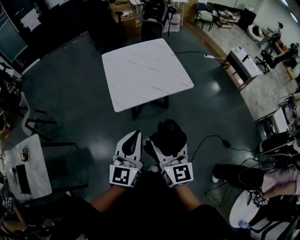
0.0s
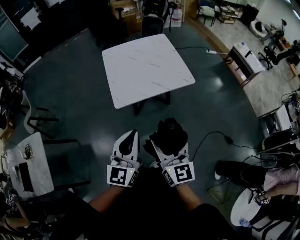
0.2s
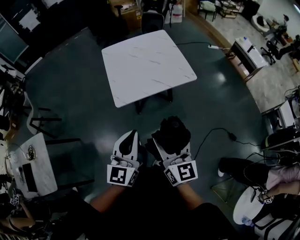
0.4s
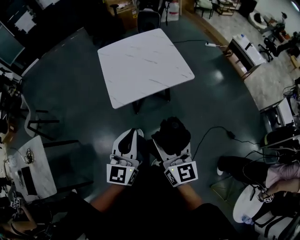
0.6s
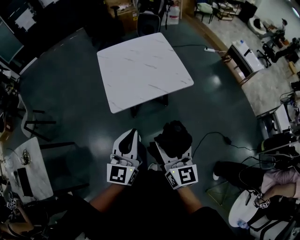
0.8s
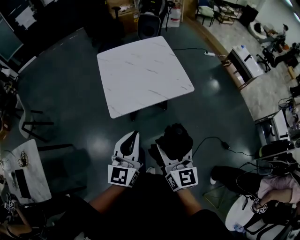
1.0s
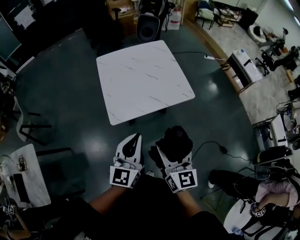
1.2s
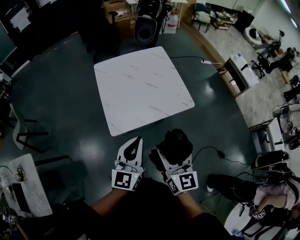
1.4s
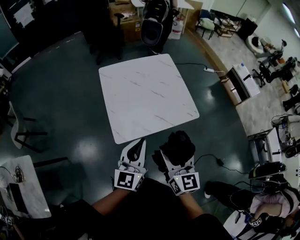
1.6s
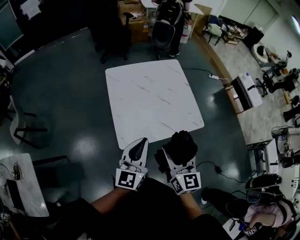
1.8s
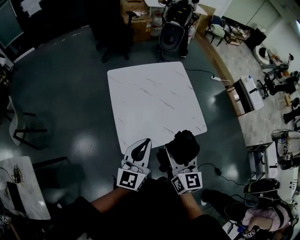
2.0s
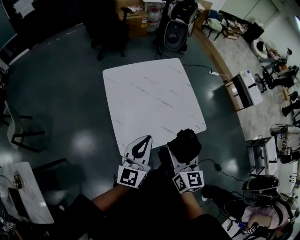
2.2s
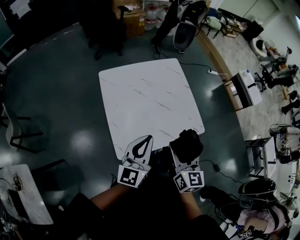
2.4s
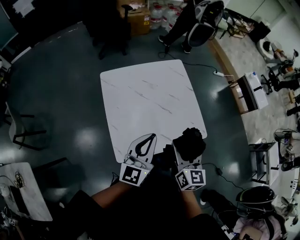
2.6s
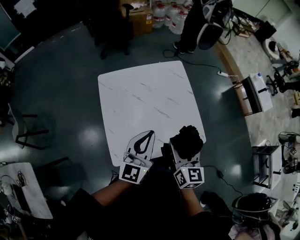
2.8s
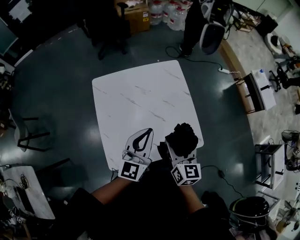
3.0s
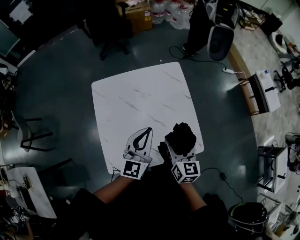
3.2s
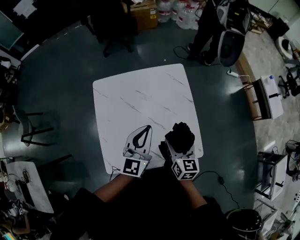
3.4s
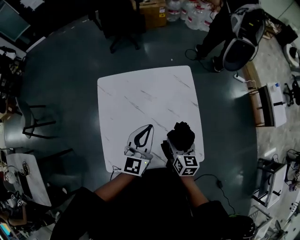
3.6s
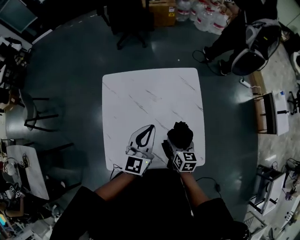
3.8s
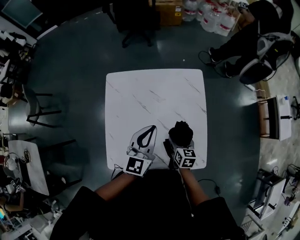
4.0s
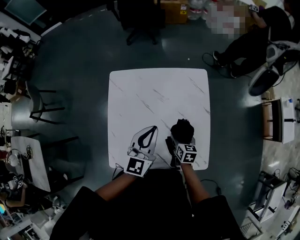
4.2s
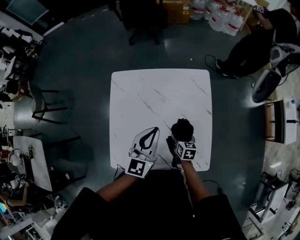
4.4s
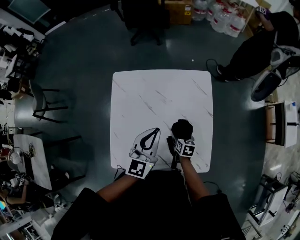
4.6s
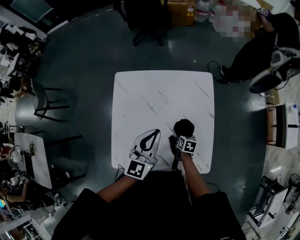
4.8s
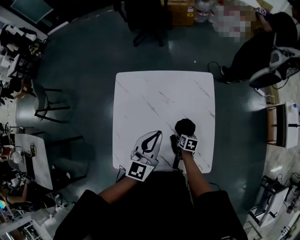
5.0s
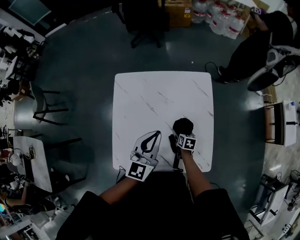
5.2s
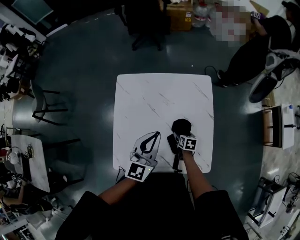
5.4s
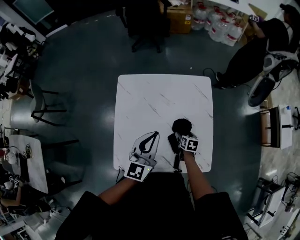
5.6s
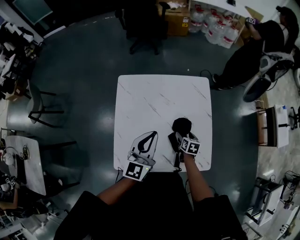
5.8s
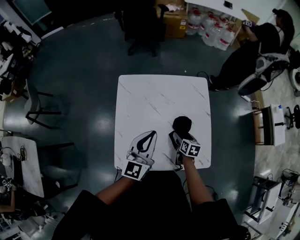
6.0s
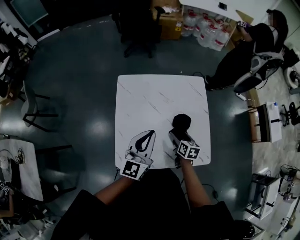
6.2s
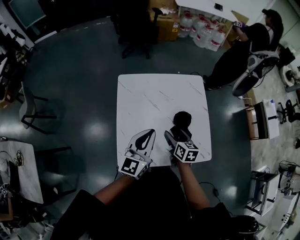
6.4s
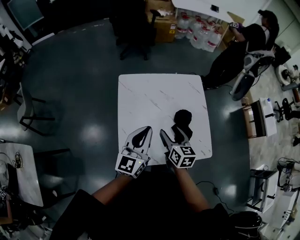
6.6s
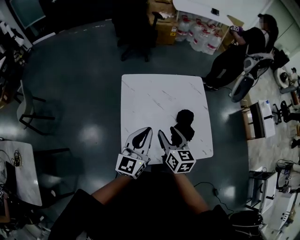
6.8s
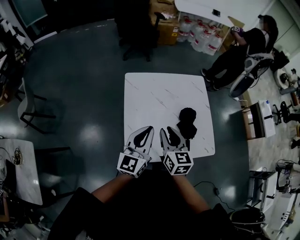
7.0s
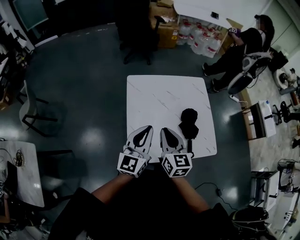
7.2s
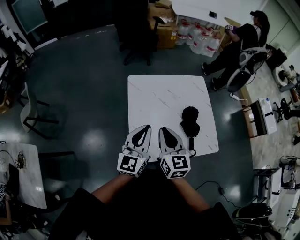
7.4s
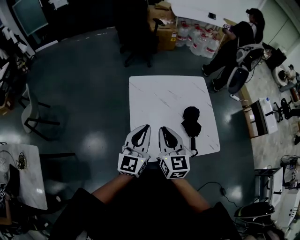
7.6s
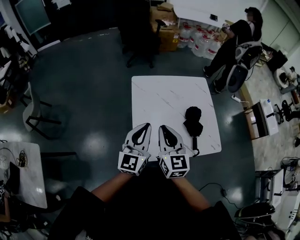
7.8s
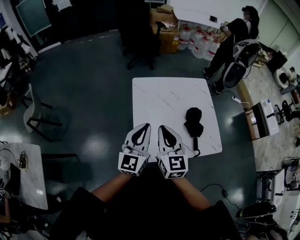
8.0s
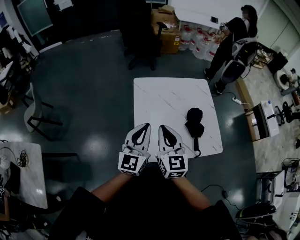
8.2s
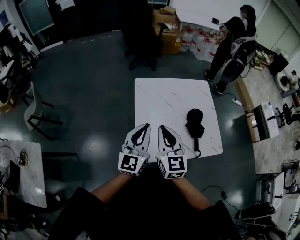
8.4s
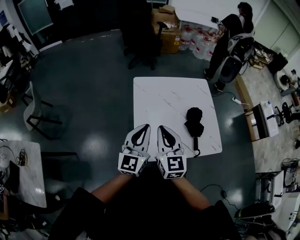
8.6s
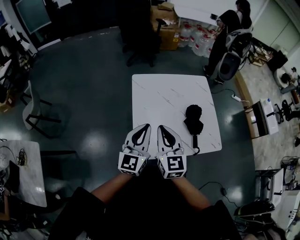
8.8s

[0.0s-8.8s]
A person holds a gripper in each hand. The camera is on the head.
0.0s to 1.4s: The grippers both shift forward by some 20 cm.
1.4s to 3.0s: The two grippers go approximately 35 cm forward.
3.0s to 4.4s: The right gripper is displaced downward and forward by some 30 cm, and swivels roughly 40 degrees; the left gripper is displaced forward and downward by approximately 15 cm.
4.4s to 5.8s: The left gripper travels to the left by some 5 cm.
5.8s to 7.4s: The left gripper moves to the left and backward, approximately 20 cm; the right gripper goes roughly 40 cm upward, to the left and backward, tilts its fingers about 40 degrees upward, and closes its fingers.
7.4s to 8.8s: The grippers make only small movements.

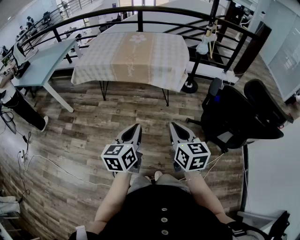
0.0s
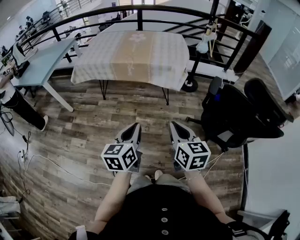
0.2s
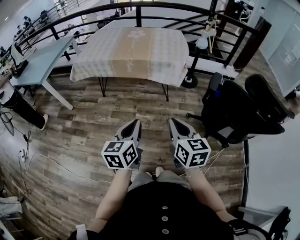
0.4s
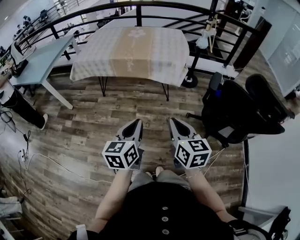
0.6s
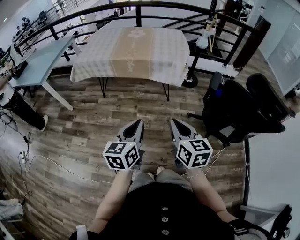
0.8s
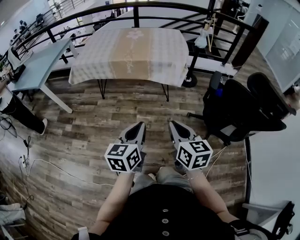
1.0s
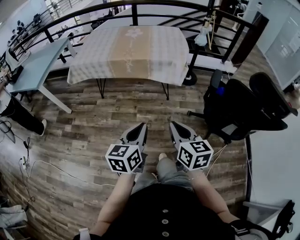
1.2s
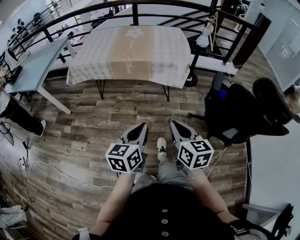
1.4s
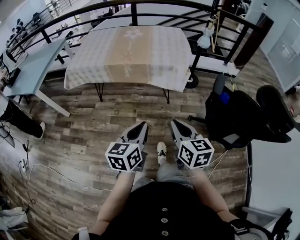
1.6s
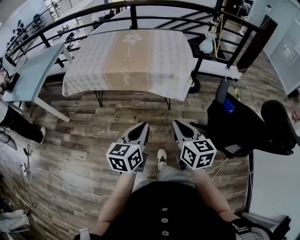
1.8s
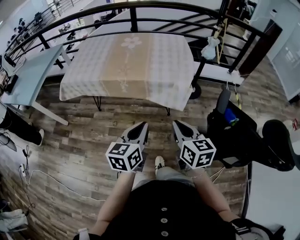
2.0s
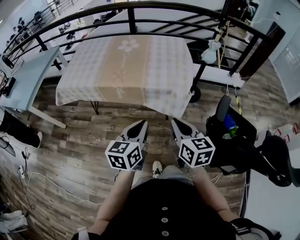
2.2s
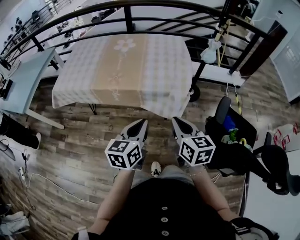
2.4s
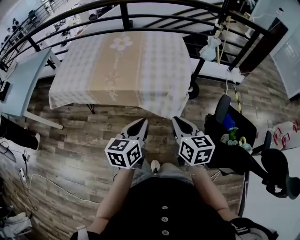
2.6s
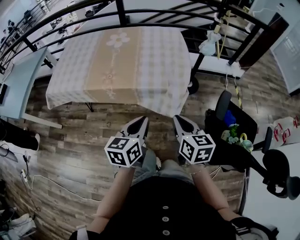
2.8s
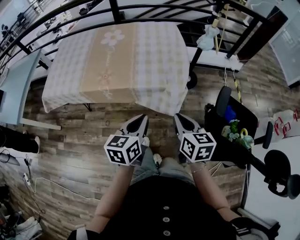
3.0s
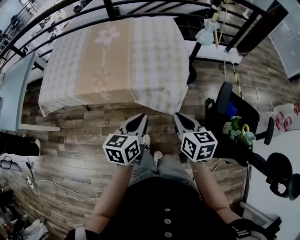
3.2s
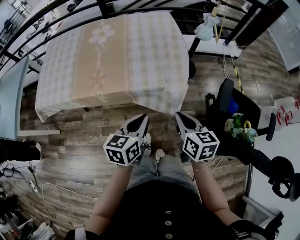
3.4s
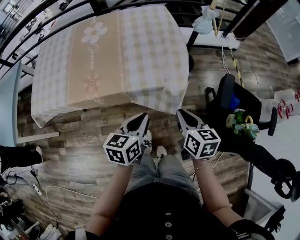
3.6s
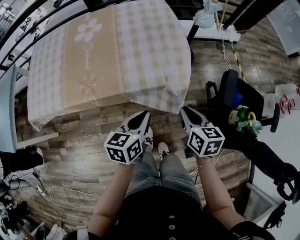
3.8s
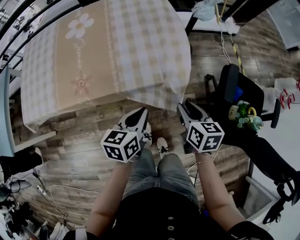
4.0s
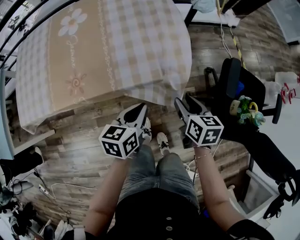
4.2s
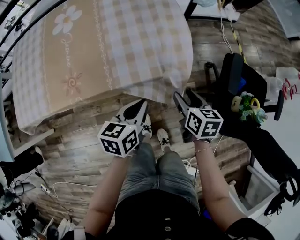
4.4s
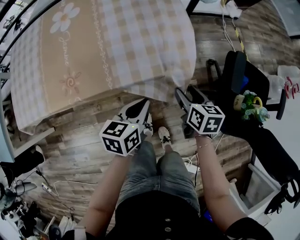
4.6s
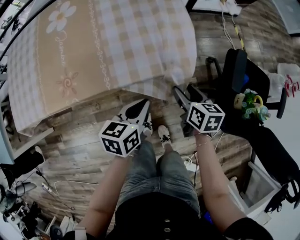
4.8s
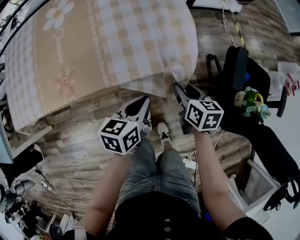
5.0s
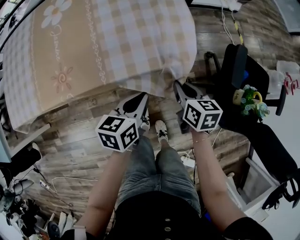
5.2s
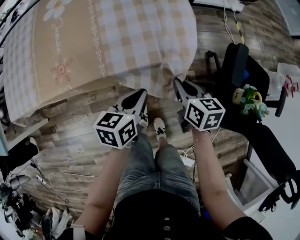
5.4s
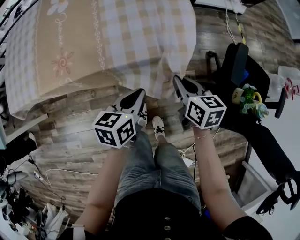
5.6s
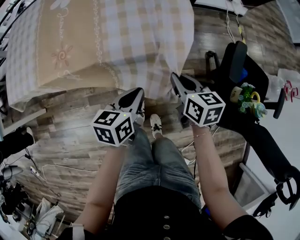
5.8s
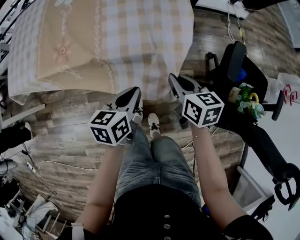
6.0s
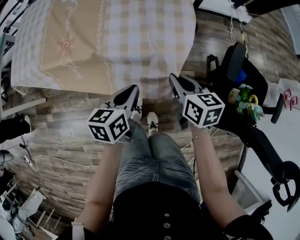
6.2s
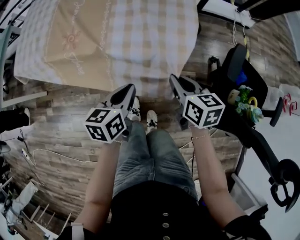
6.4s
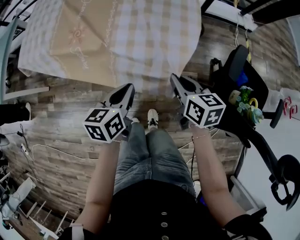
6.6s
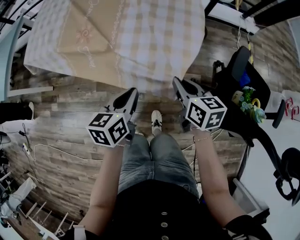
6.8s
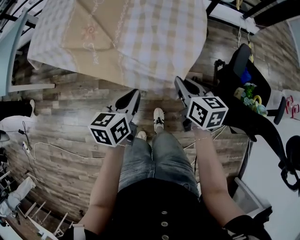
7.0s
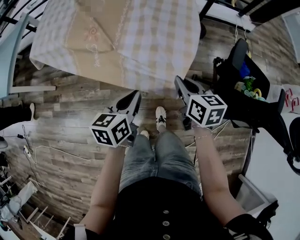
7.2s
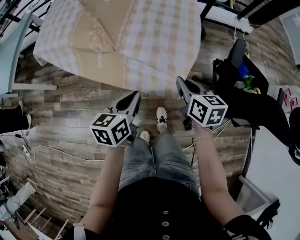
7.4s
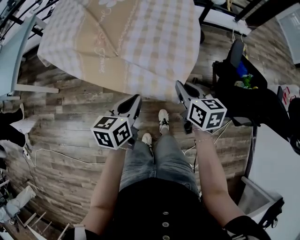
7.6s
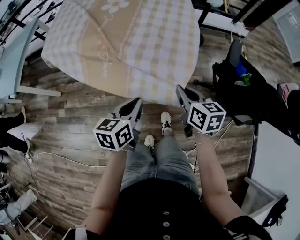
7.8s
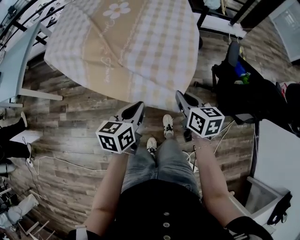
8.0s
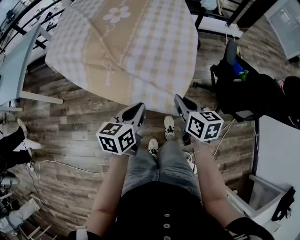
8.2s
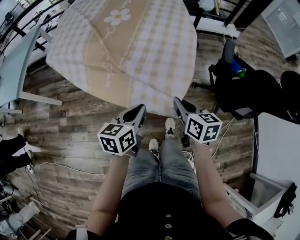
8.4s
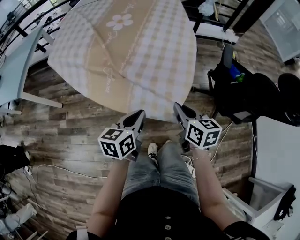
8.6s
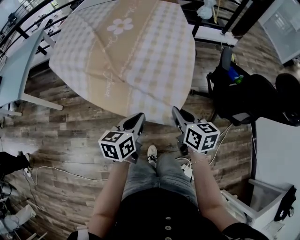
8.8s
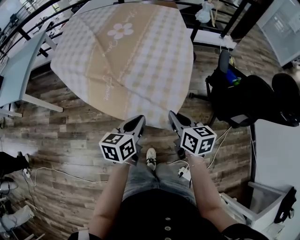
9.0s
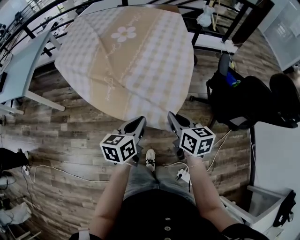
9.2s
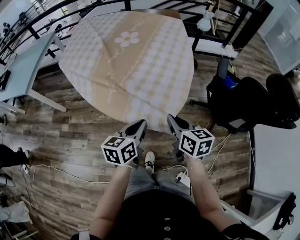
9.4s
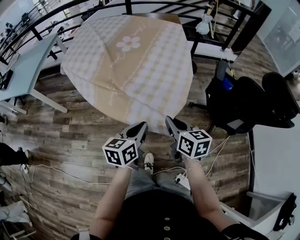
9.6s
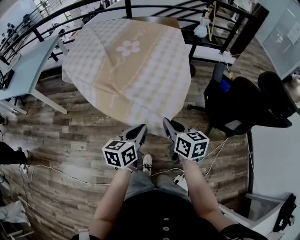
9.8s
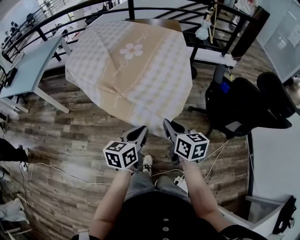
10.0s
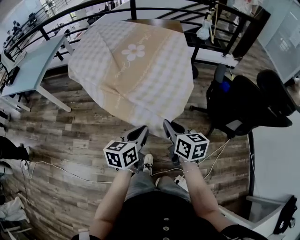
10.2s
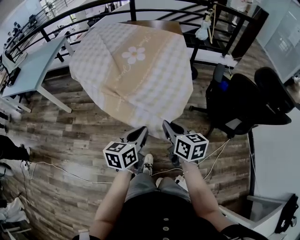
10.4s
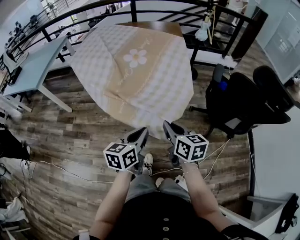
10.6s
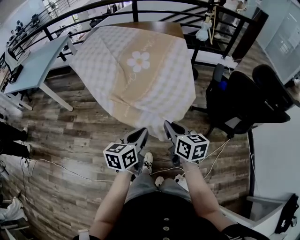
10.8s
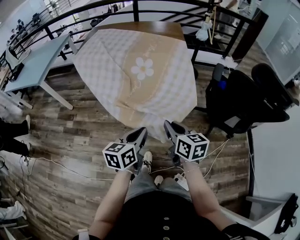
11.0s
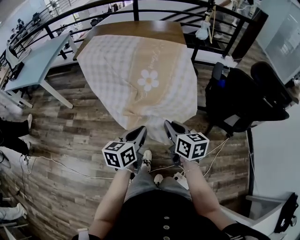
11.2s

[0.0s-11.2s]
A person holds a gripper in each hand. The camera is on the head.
0.0s to 1.6s: Both grippers move forward, approximately 10 cm.
1.6s to 3.2s: The grippers both shift forward by approximately 30 cm.
3.2s to 4.8s: The grippers both shift downward and forward by approximately 20 cm. The left gripper swivels roughly 20 degrees, while the right gripper swivels some 20 degrees, and opens its fingers.
4.8s to 6.4s: The right gripper travels backward and upward by roughly 10 cm, turns by some 20 degrees, and closes its fingers. The left gripper goes some 10 cm backward.
6.4s to 8.0s: Both grippers travel together backward and to the left, approximately 20 cm.
8.0s to 9.6s: The left gripper is displaced backward by approximately 10 cm. The right gripper heads backward and upward, covering about 15 cm.
9.6s to 11.2s: Both grippers move backward, approximately 10 cm.

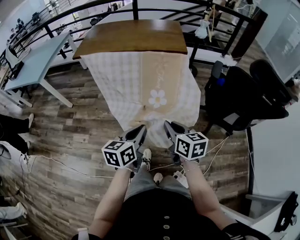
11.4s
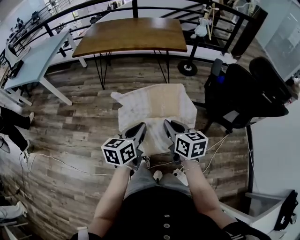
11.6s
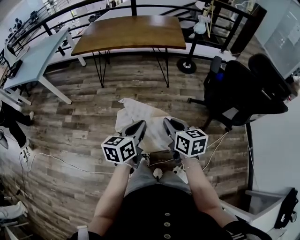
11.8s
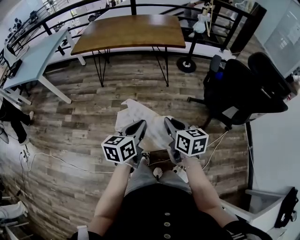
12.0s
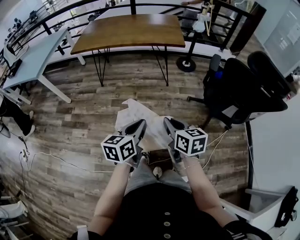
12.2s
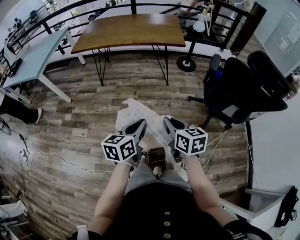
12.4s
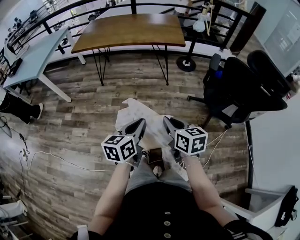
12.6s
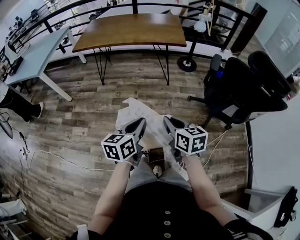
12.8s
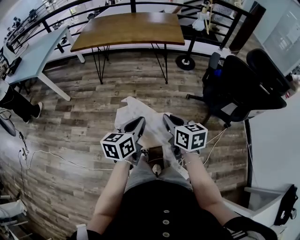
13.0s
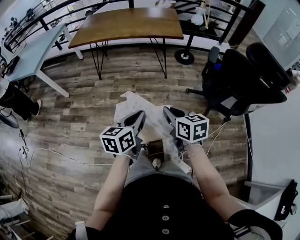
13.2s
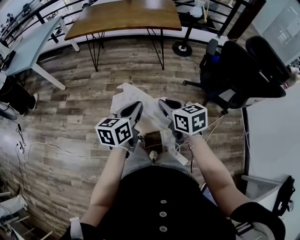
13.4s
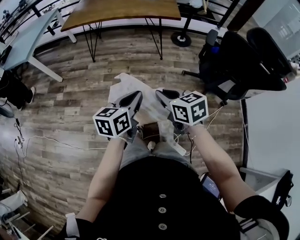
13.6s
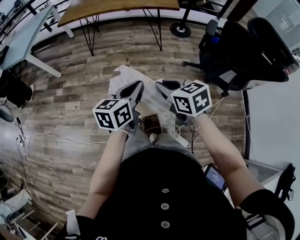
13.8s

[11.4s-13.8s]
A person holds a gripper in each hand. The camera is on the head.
11.4s to 12.6s: The grippers stay close to where they were, moving slightly.
12.6s to 13.8s: The right gripper turns by some 20 degrees.

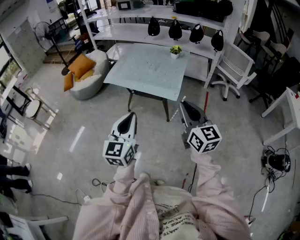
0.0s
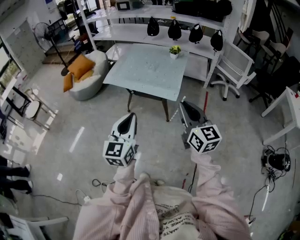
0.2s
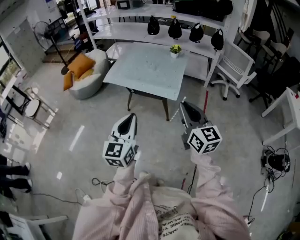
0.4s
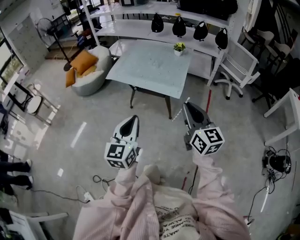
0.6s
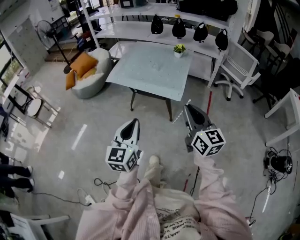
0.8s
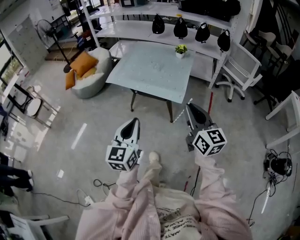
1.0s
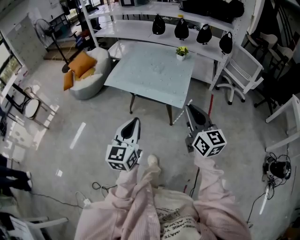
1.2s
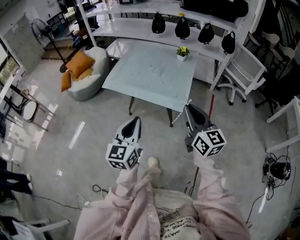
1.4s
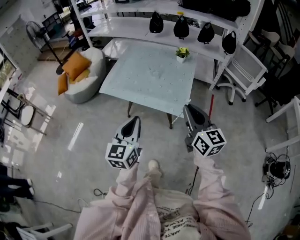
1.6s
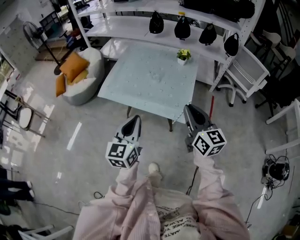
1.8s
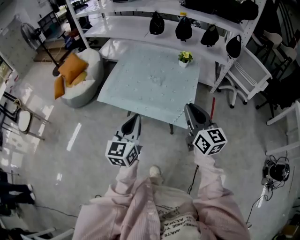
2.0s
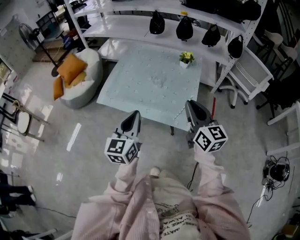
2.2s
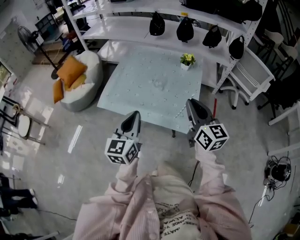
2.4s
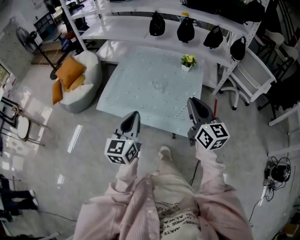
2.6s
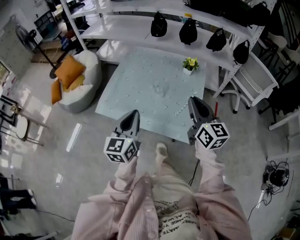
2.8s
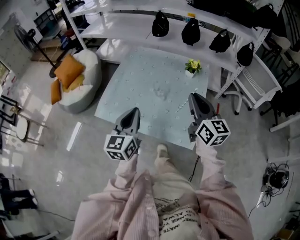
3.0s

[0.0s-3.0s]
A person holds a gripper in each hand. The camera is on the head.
0.0s to 1.6s: Both grippers travel together forward, roughly 20 cm.
1.6s to 3.0s: Both grippers travel together forward, some 30 cm.
